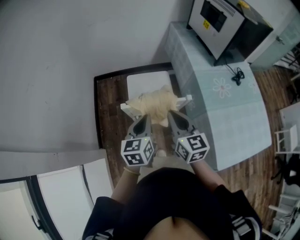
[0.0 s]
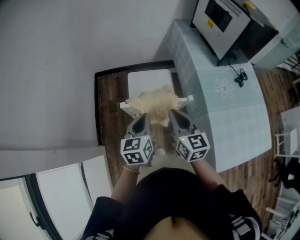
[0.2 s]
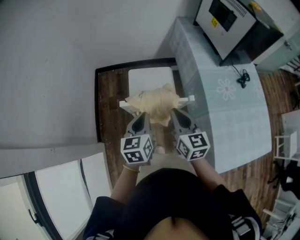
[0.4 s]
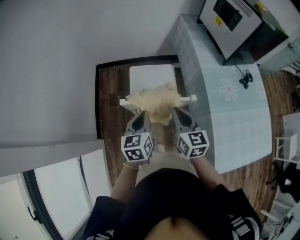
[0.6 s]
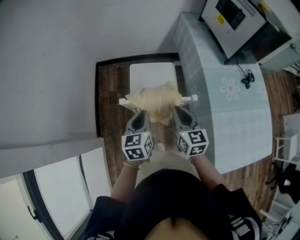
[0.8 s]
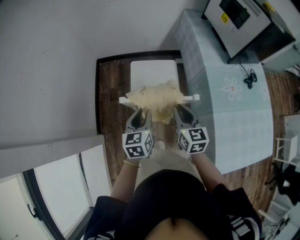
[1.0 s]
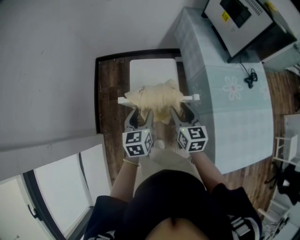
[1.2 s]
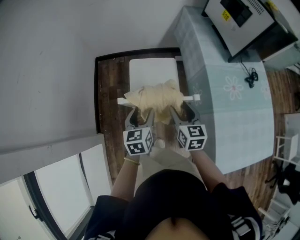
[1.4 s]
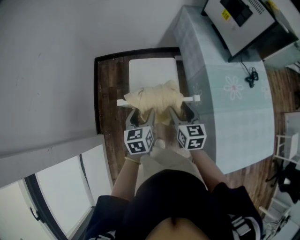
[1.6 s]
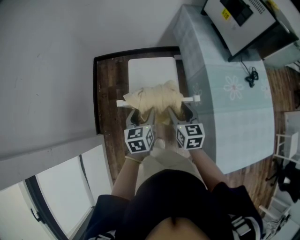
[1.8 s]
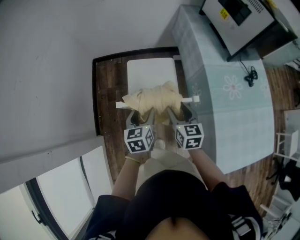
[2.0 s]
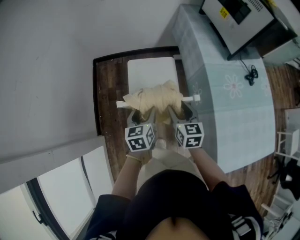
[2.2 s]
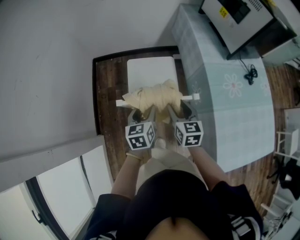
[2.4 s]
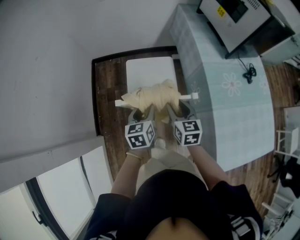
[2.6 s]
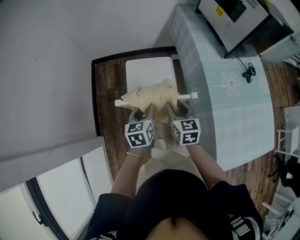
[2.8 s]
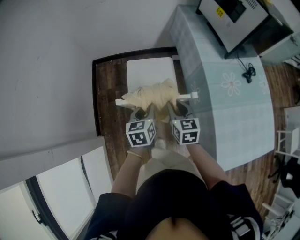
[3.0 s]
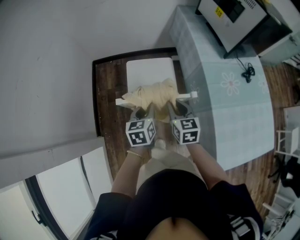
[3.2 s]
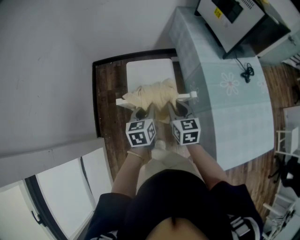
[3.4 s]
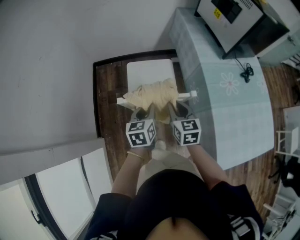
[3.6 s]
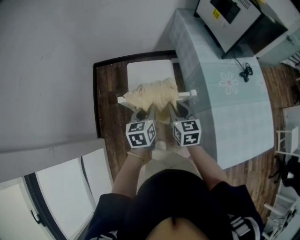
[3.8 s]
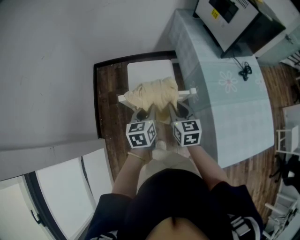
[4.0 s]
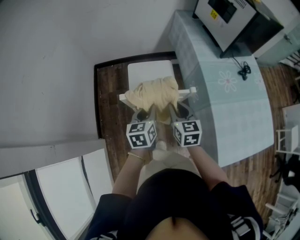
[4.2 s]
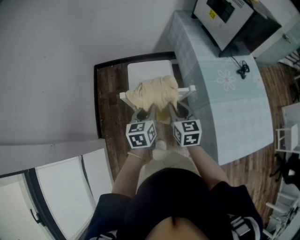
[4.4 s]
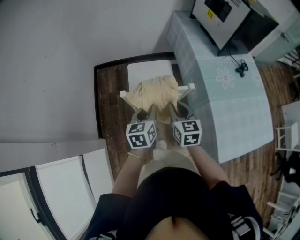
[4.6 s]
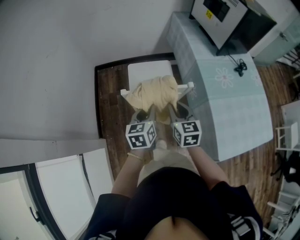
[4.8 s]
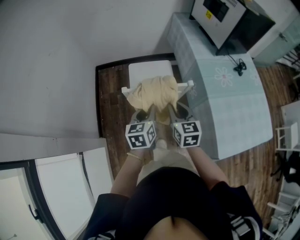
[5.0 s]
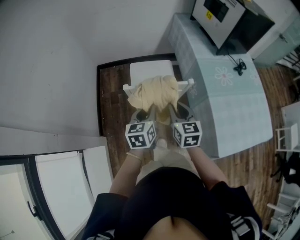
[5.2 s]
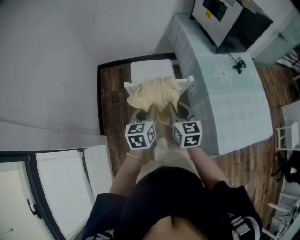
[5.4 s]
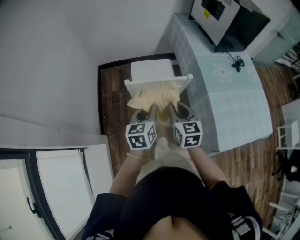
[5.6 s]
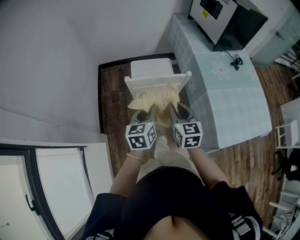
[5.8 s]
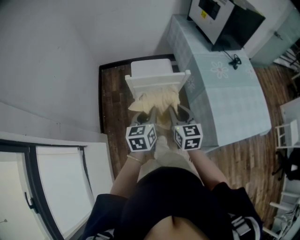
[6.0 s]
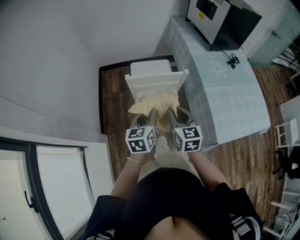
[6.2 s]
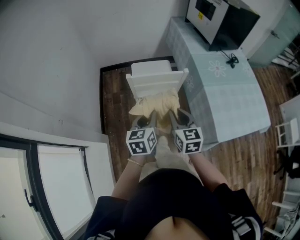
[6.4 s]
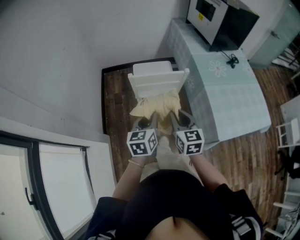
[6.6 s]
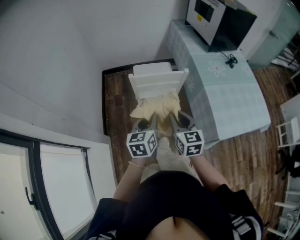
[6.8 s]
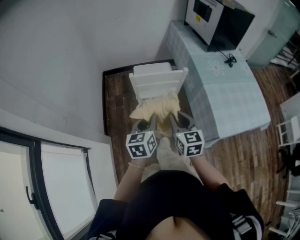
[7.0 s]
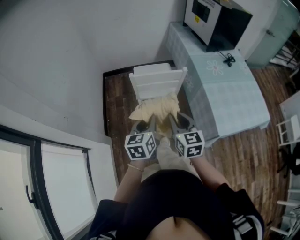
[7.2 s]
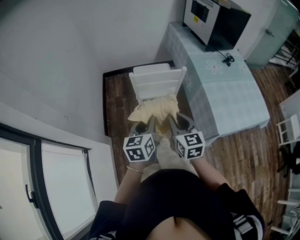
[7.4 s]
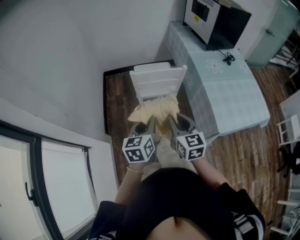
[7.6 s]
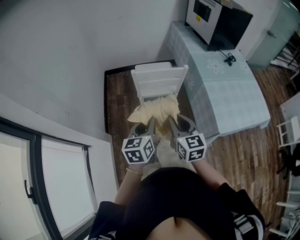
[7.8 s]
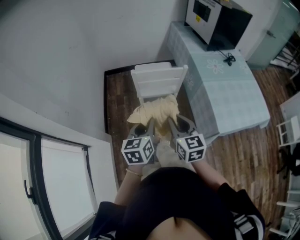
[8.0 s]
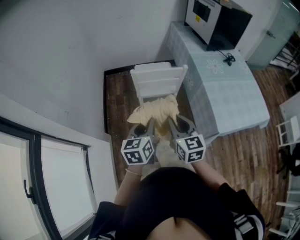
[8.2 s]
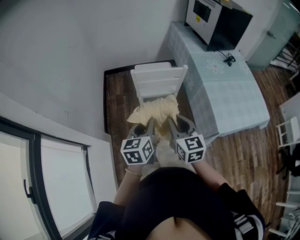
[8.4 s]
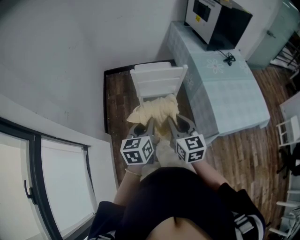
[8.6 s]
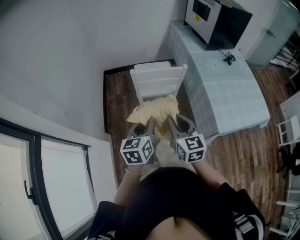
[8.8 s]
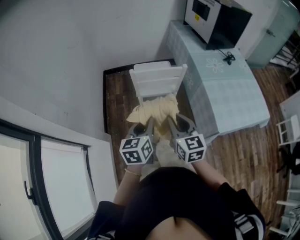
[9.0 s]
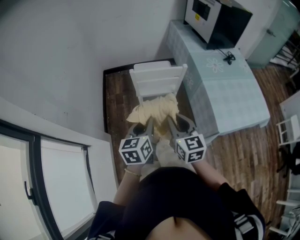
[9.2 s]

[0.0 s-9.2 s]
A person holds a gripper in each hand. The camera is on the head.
0.0 to 1.6 s: The two grippers go some 15 cm downward and forward. The right gripper opens up, while the left gripper opens.
1.6 to 3.0 s: The right gripper closes its fingers; the left gripper closes up.
3.0 to 4.6 s: The grippers both shift backward by approximately 5 cm.
4.6 to 6.2 s: The grippers both shift backward by approximately 15 cm.
6.2 to 7.6 s: The two grippers go approximately 10 cm backward.
7.6 to 9.2 s: The grippers stay close to where they were, moving slightly.

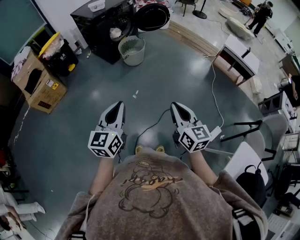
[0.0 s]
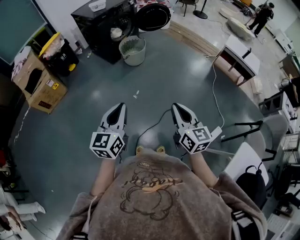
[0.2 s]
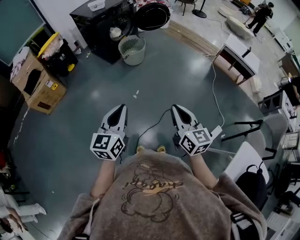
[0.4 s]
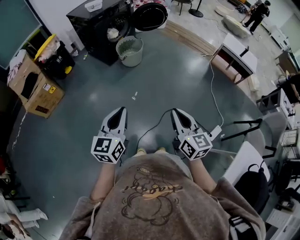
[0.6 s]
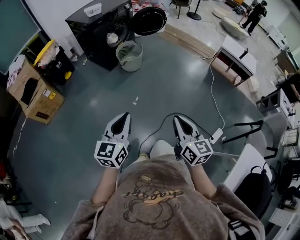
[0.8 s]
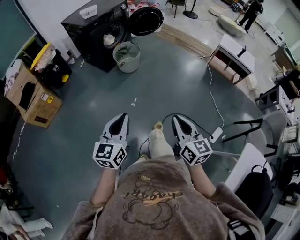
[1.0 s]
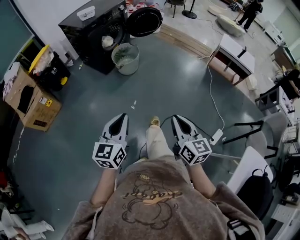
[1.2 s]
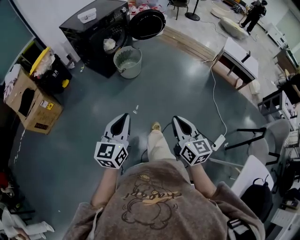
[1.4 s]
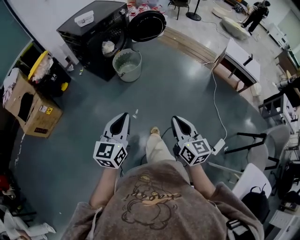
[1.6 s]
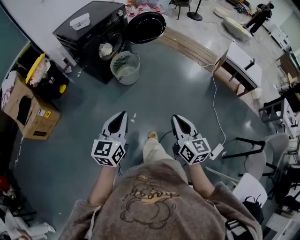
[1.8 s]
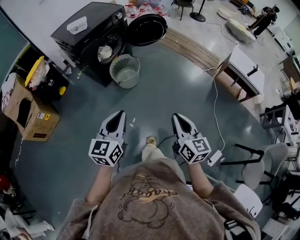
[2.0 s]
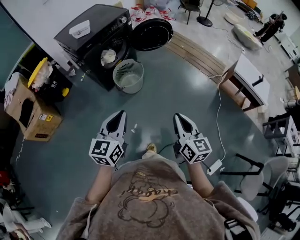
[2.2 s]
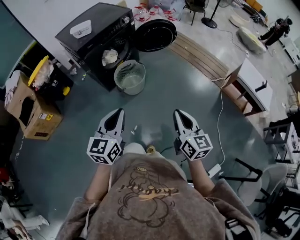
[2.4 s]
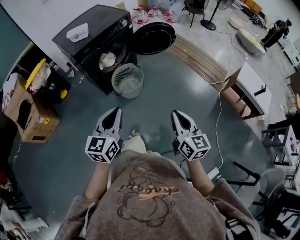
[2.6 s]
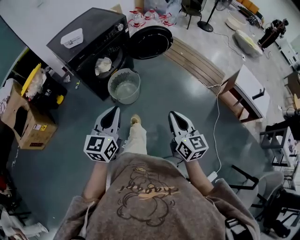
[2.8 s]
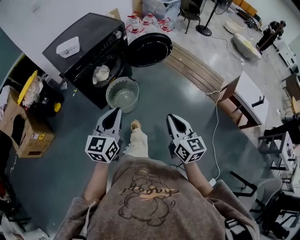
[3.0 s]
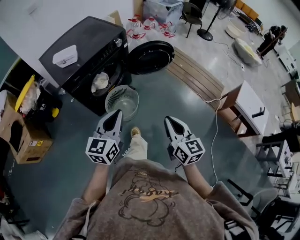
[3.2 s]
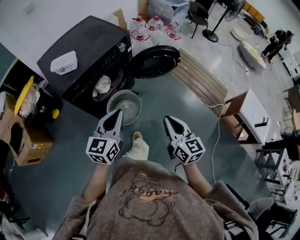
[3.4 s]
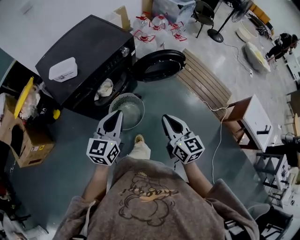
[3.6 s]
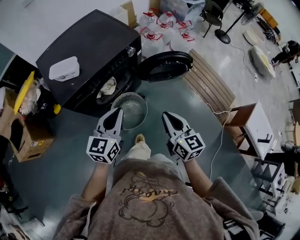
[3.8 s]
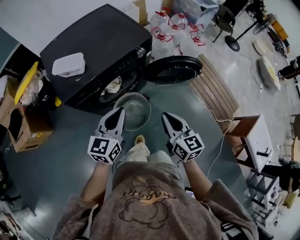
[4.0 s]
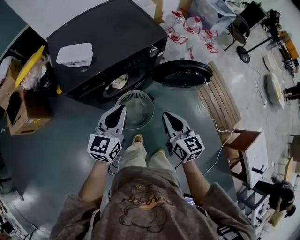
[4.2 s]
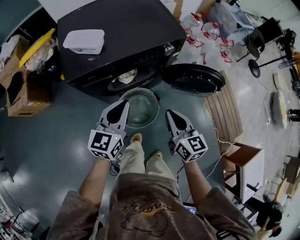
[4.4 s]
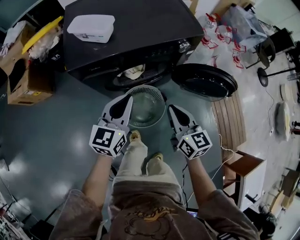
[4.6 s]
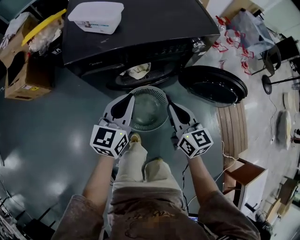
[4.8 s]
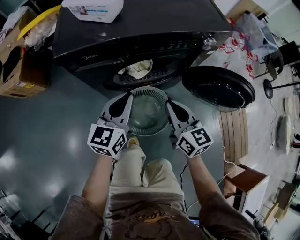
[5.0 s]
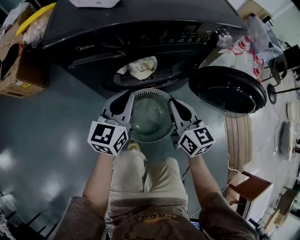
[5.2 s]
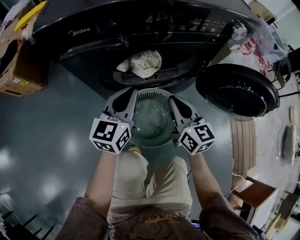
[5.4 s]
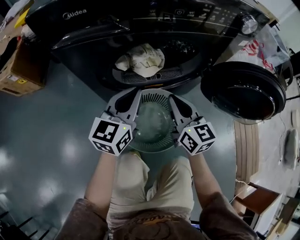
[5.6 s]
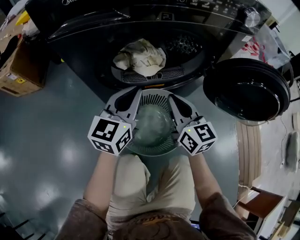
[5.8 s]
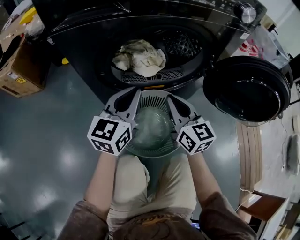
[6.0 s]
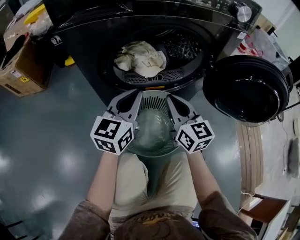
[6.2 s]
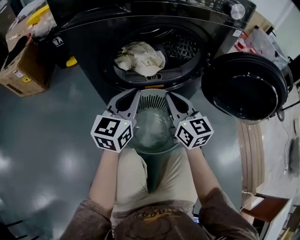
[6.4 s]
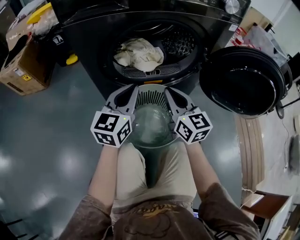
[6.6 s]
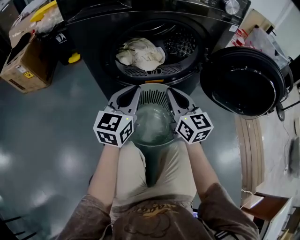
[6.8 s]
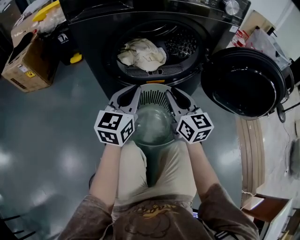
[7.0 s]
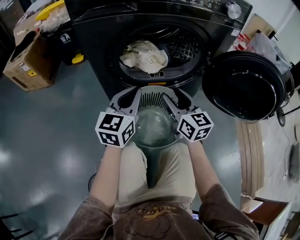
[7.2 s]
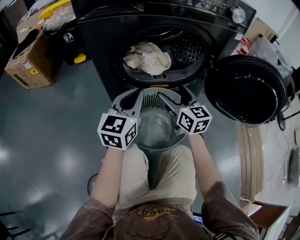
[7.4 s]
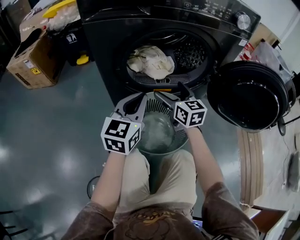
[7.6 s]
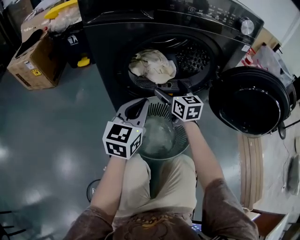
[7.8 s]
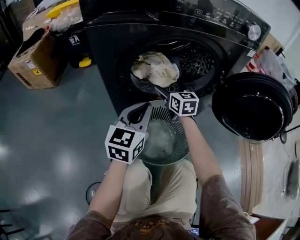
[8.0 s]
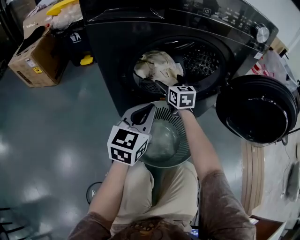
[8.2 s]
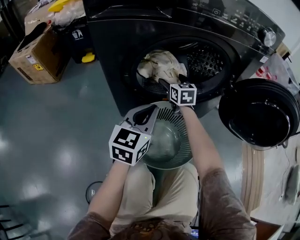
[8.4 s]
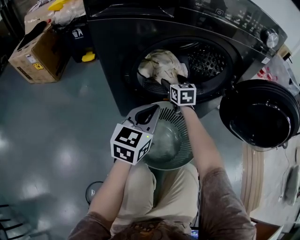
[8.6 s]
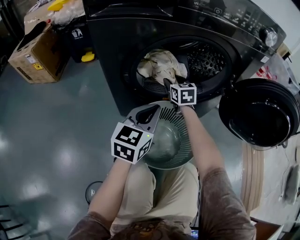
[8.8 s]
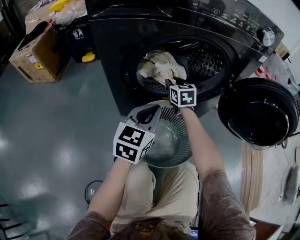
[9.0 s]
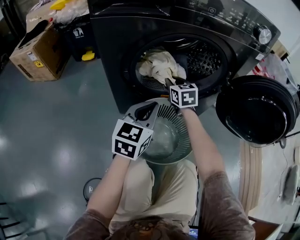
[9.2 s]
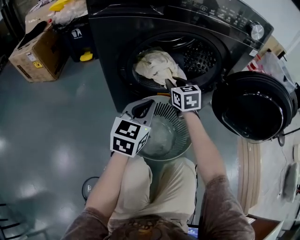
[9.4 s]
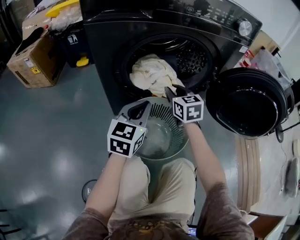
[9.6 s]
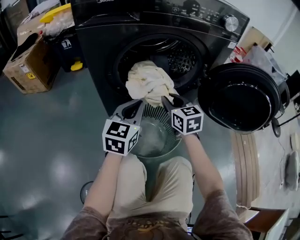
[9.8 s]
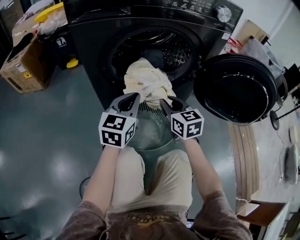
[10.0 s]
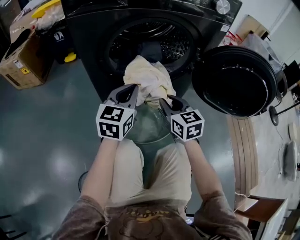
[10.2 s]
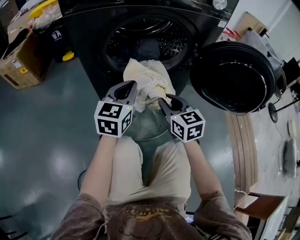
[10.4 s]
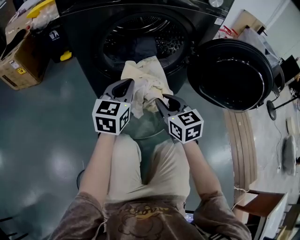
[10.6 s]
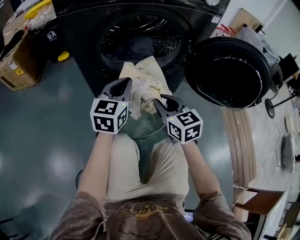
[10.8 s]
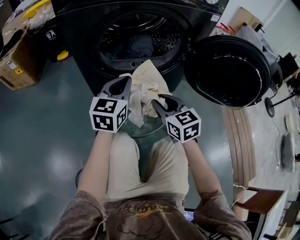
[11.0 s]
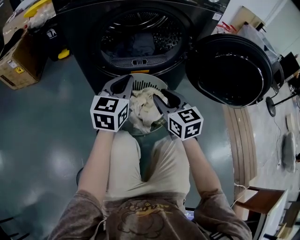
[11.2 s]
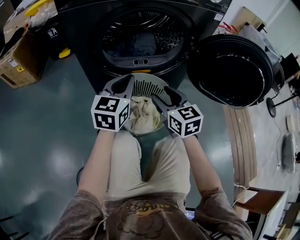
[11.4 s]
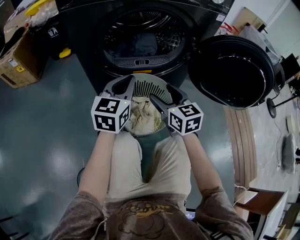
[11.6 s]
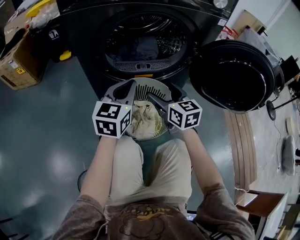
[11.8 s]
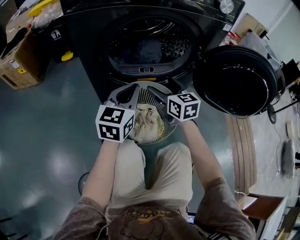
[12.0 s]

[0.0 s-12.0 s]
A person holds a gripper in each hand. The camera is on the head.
0.0 to 1.6 s: The two grippers go about 20 cm forward.
1.6 to 3.0 s: Both grippers are carried forward, about 40 cm.
3.0 to 4.4 s: The left gripper shifts by approximately 35 cm, and turns by about 20 degrees; the right gripper changes place by some 40 cm, and swivels approximately 30 degrees.
4.4 to 6.0 s: The two grippers go roughly 35 cm downward. The right gripper rotates some 20 degrees.
6.0 to 7.6 s: The right gripper shifts by approximately 5 cm, and opens its fingers. The left gripper is displaced backward by about 5 cm.
7.6 to 9.0 s: The right gripper heads forward and downward, covering approximately 15 cm, and closes, while the left gripper ends up approximately 5 cm from where it was.
9.0 to 10.4 s: The right gripper moves backward, approximately 25 cm.
10.4 to 12.0 s: The right gripper goes approximately 10 cm forward, and opens.

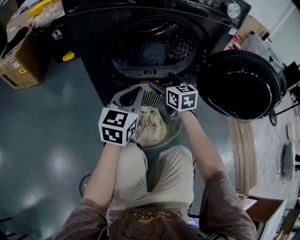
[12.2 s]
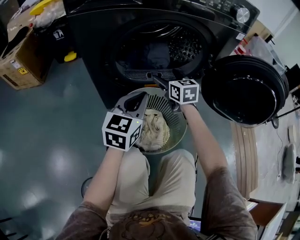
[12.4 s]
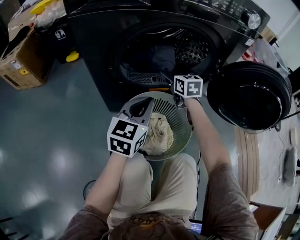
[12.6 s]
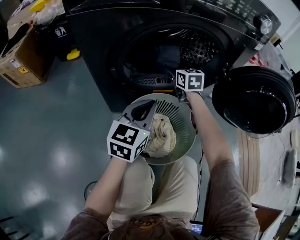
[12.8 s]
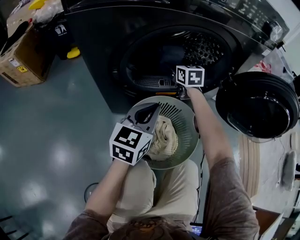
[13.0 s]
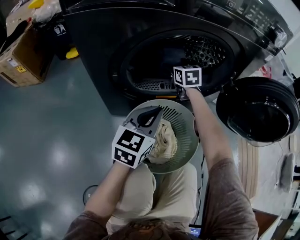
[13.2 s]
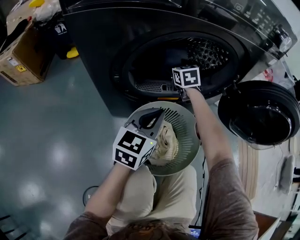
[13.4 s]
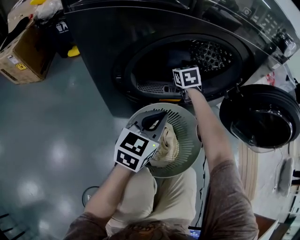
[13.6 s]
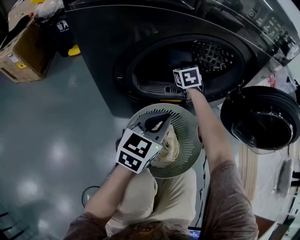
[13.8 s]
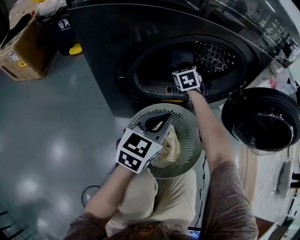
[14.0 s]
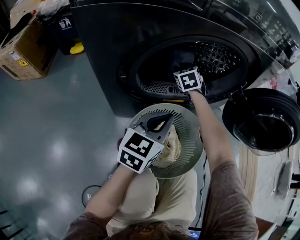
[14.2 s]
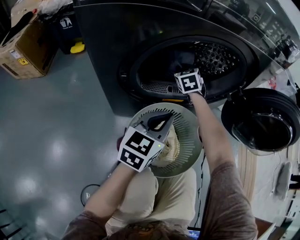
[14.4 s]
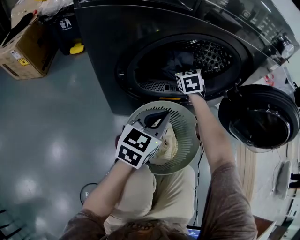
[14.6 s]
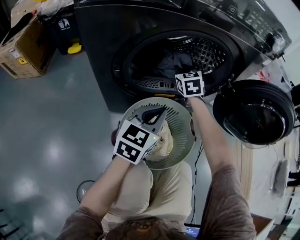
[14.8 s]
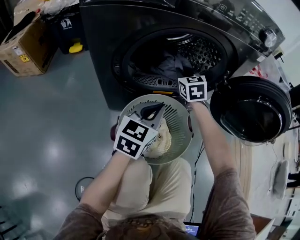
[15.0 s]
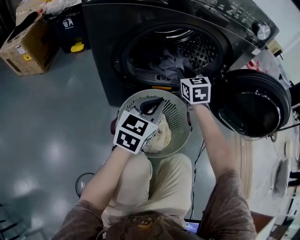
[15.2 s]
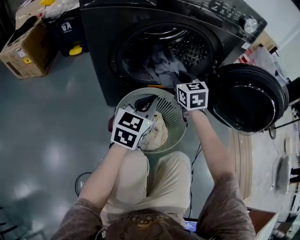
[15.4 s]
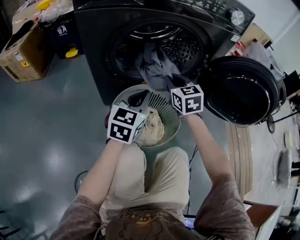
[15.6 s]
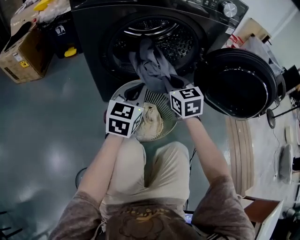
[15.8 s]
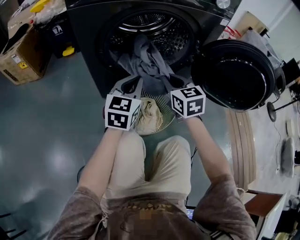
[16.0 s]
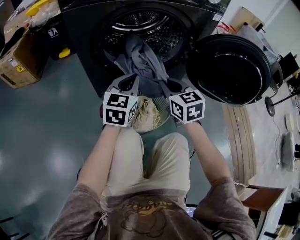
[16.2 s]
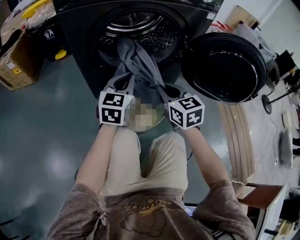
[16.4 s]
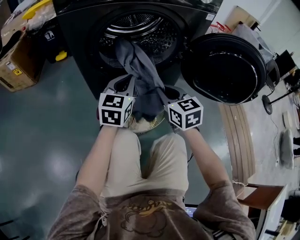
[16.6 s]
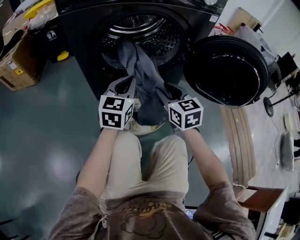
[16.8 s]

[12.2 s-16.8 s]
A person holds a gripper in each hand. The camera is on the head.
12.2 to 13.8 s: The left gripper goes some 5 cm downward. The right gripper is displaced forward by some 20 cm, and rotates about 30 degrees.
13.8 to 15.2 s: The left gripper moves about 5 cm; the right gripper heads backward, upward and to the right, covering some 15 cm, and closes its fingers.
15.2 to 16.8 s: The right gripper moves backward, roughly 20 cm.
